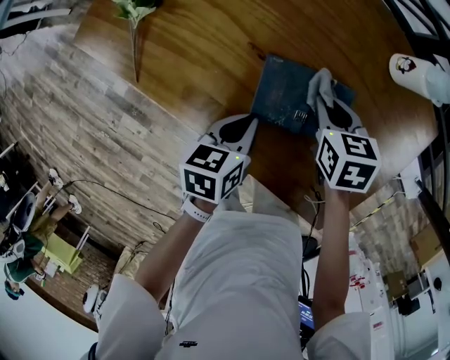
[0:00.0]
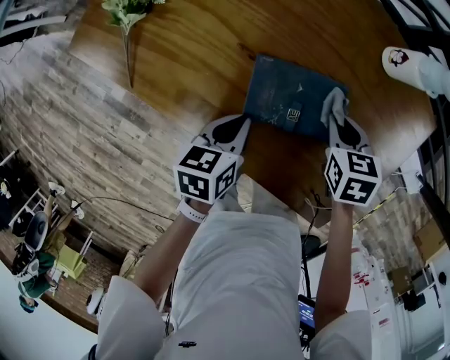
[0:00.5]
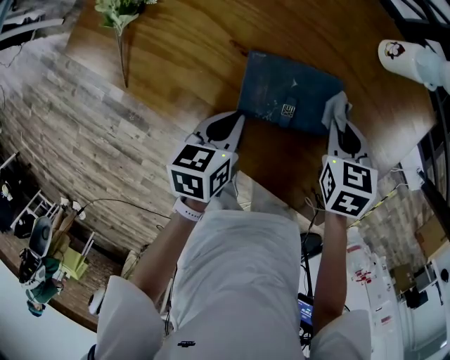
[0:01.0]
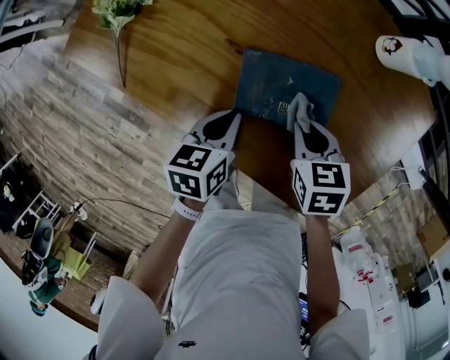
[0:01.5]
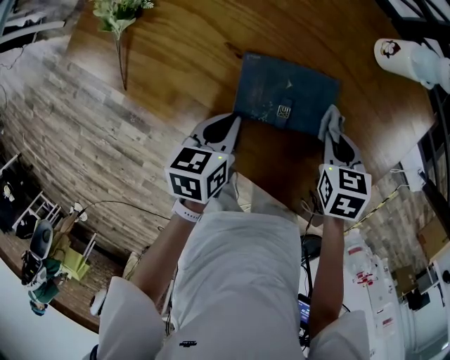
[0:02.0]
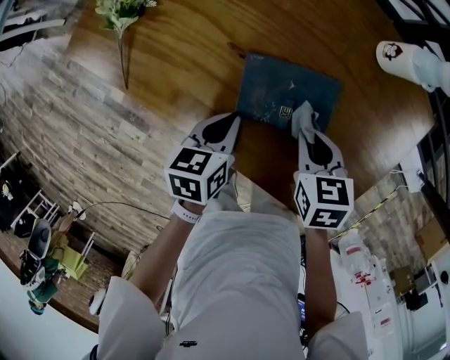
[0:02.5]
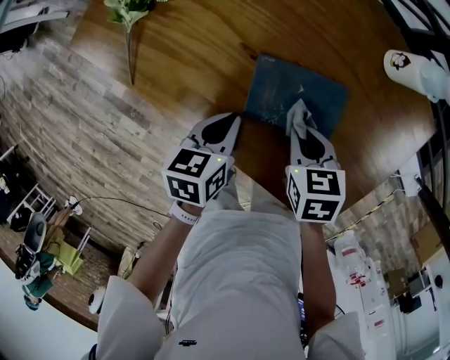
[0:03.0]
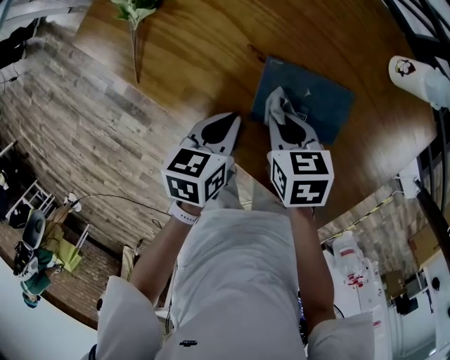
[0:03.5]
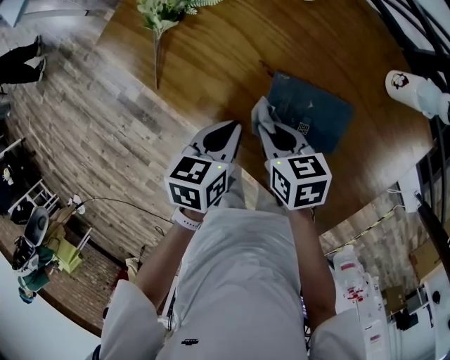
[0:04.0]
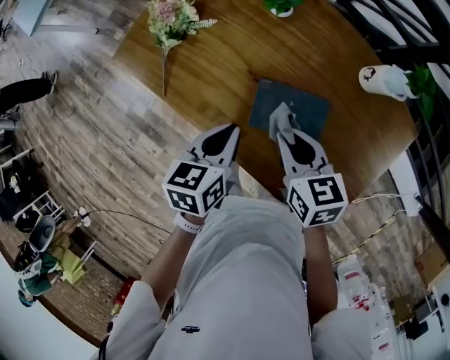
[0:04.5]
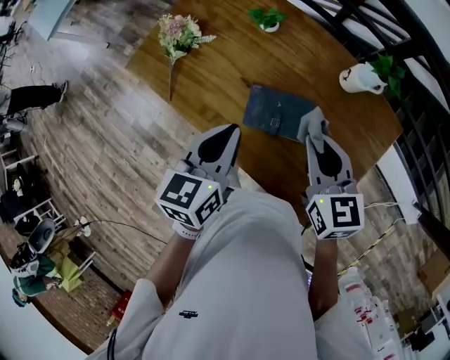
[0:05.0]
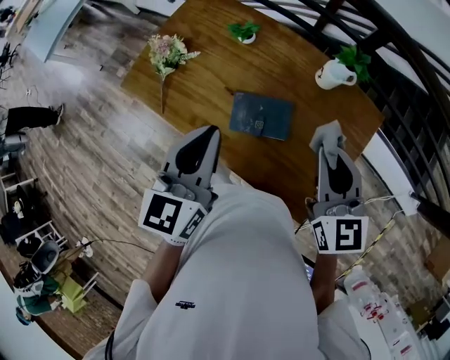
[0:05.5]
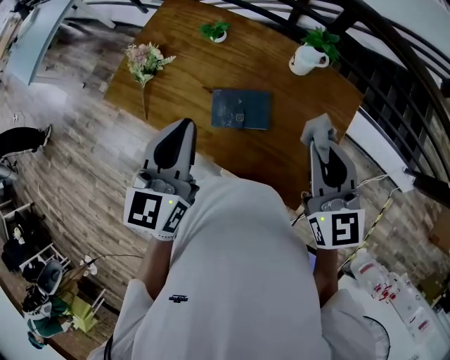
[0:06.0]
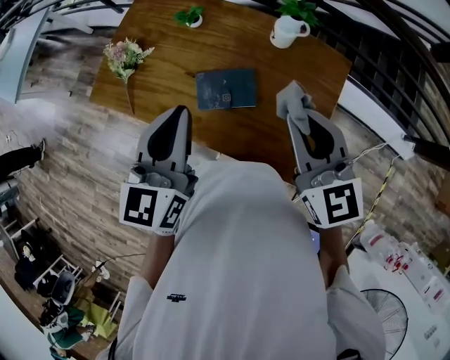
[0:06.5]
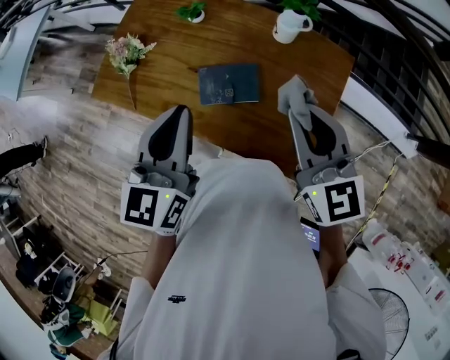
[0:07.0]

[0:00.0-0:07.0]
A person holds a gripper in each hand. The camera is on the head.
0:00.0 to 0:02.0: The right gripper moves left and right over about 10 cm, changing direction 2 times.
0:02.0 to 0:03.5: The right gripper shifts approximately 20 cm to the left.
0:03.5 to 0:05.0: The left gripper shifts roughly 25 cm upward, and swivels some 30 degrees; the right gripper goes roughly 25 cm upward and to the right, and tips its fingers upward by some 30 degrees.
0:05.0 to 0:07.0: The right gripper is displaced upward, backward and to the right by approximately 15 cm. The left gripper goes roughly 10 cm upward, and turns by about 20 degrees.

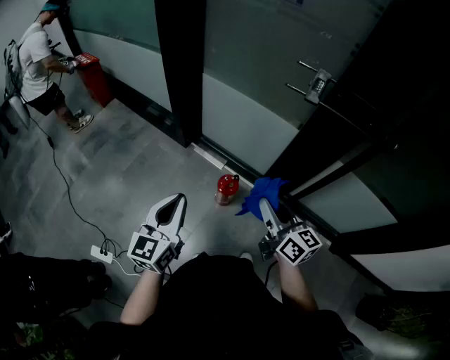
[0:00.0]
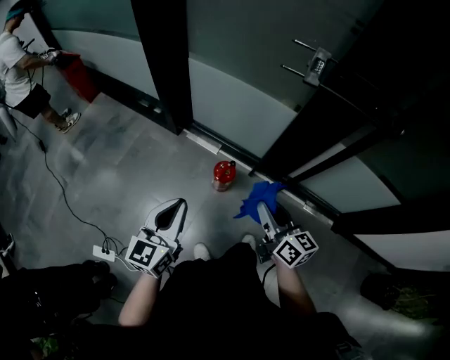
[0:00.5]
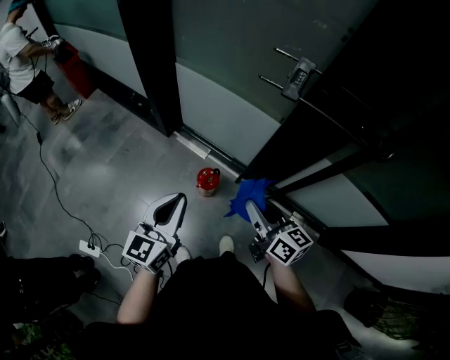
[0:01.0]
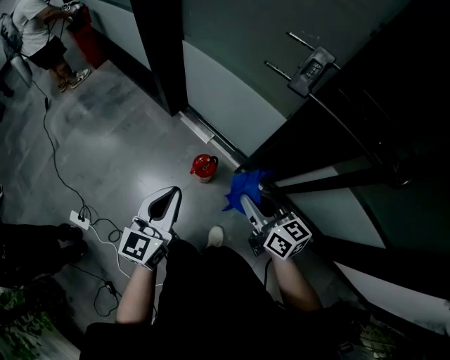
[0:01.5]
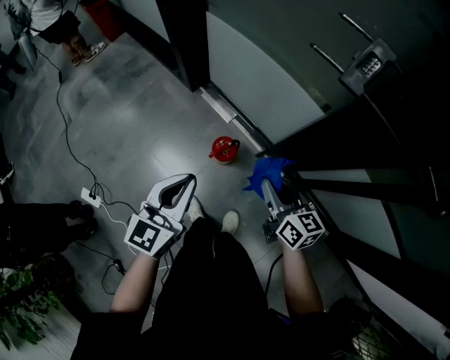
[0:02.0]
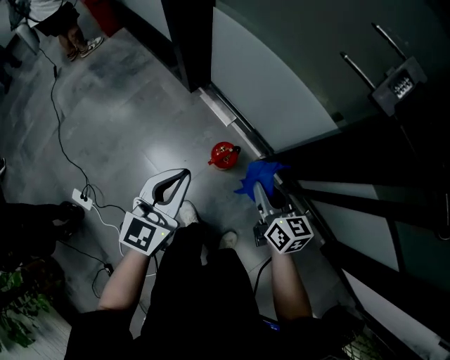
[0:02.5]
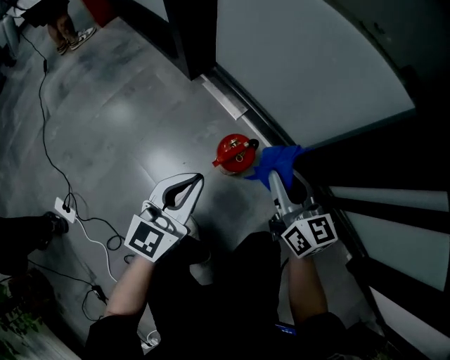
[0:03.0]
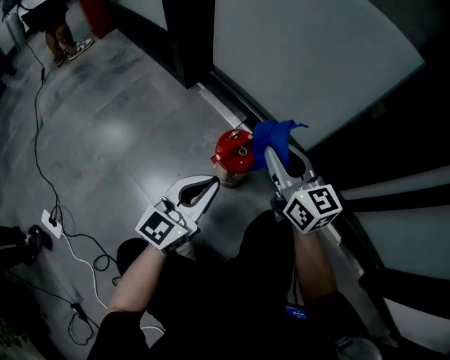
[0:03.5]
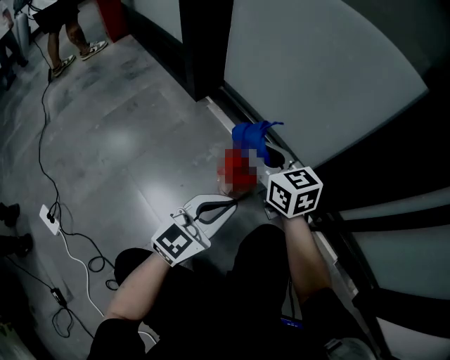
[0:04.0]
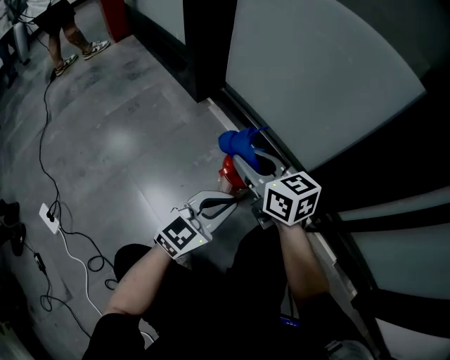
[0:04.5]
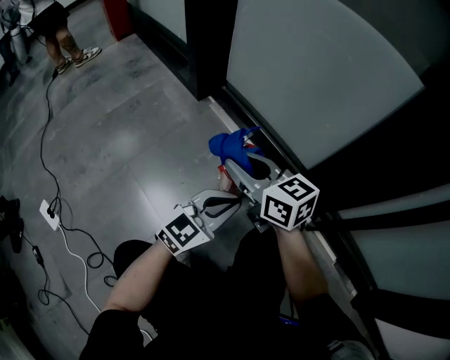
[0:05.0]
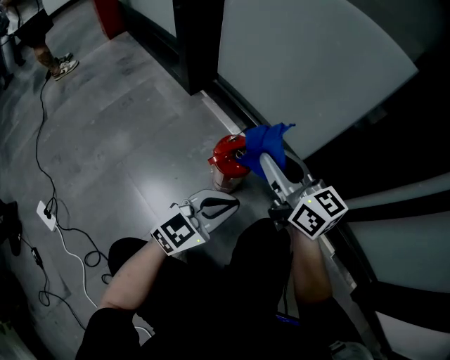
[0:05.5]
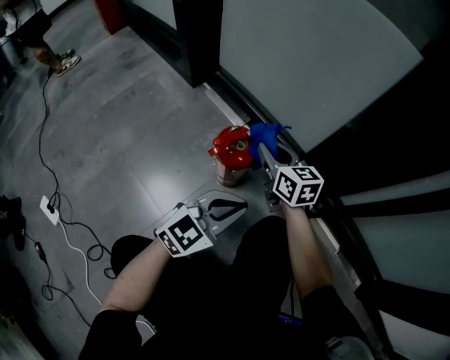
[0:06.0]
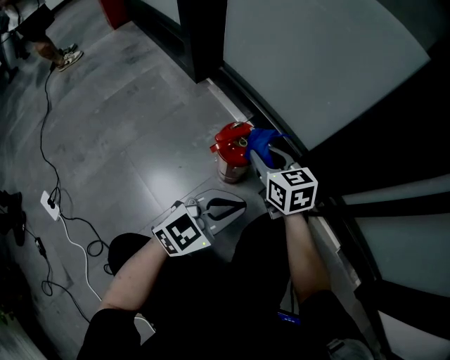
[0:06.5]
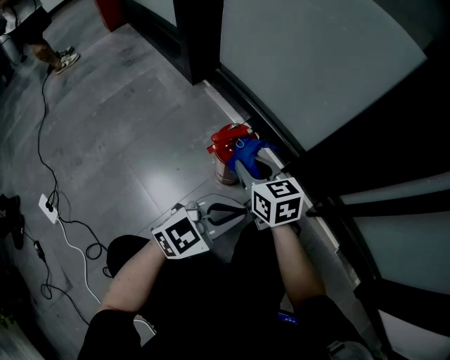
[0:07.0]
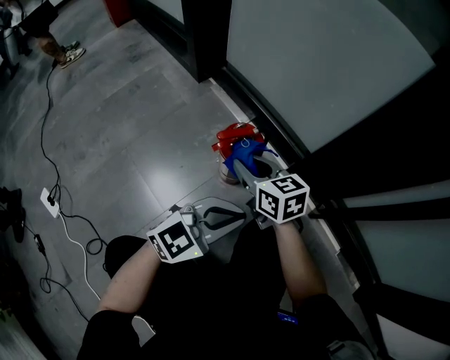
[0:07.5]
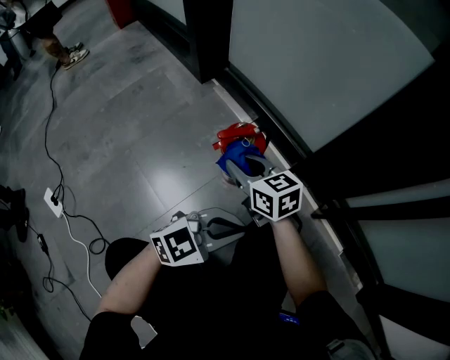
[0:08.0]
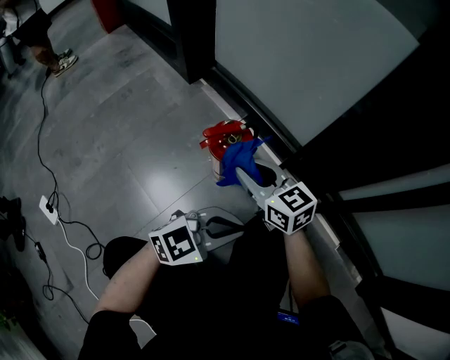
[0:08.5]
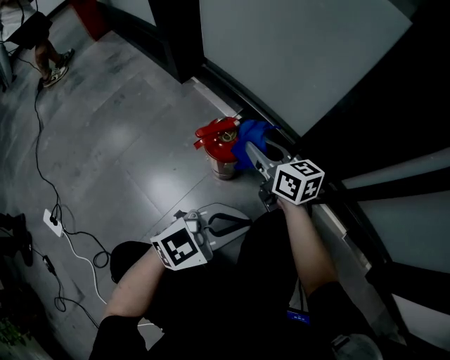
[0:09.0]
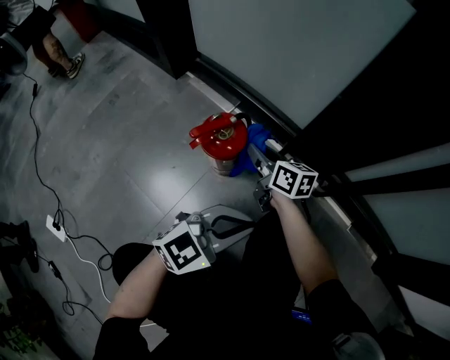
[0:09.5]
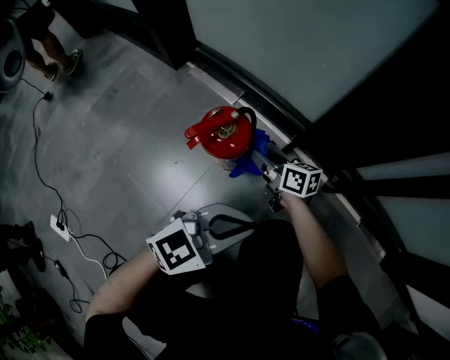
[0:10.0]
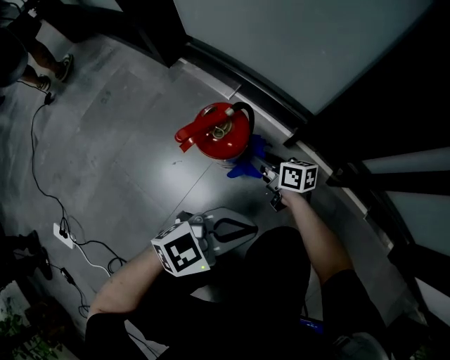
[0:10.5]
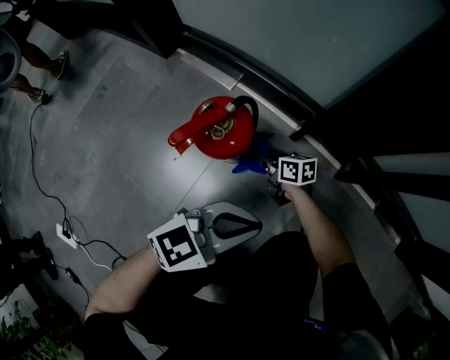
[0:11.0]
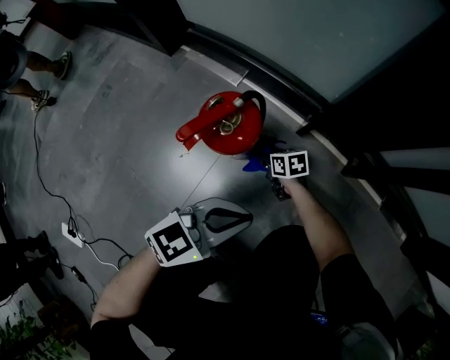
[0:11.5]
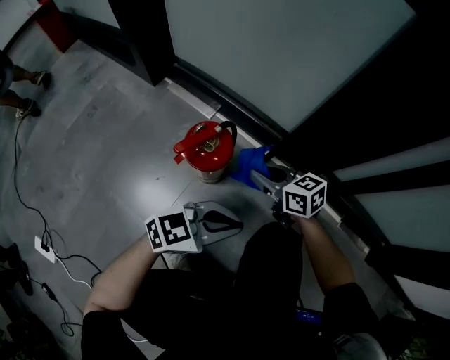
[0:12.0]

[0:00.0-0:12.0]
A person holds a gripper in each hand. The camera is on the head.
0:00.0 to 0:02.0: The right gripper shifts some 20 cm downward, forward and to the right; the left gripper travels to the right, downward and forward by approximately 20 cm.
0:02.0 to 0:04.0: The grippers both shift downward by roughly 40 cm. The right gripper swivels some 20 degrees.
0:04.0 to 0:06.0: The right gripper travels to the right and downward by about 10 cm, while the left gripper goes about 5 cm to the right.
0:06.0 to 0:08.0: The right gripper travels backward and to the left by some 10 cm; the left gripper moves backward, some 5 cm.
0:08.0 to 0:10.0: The right gripper is displaced downward, to the right and forward by approximately 20 cm, and turns by some 30 degrees.
0:10.0 to 0:12.0: The right gripper travels downward and back again, some 20 cm each way, and swivels approximately 20 degrees.

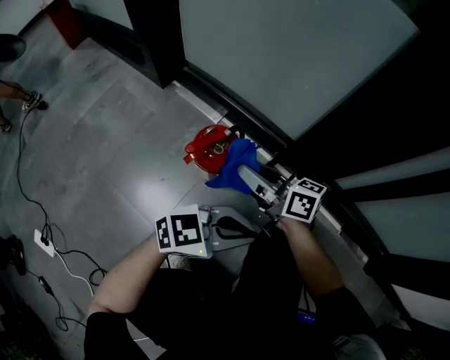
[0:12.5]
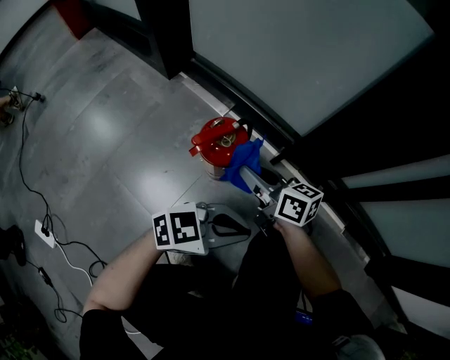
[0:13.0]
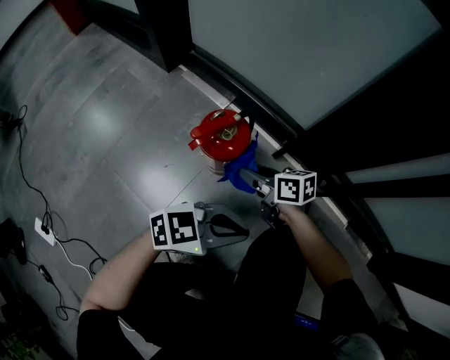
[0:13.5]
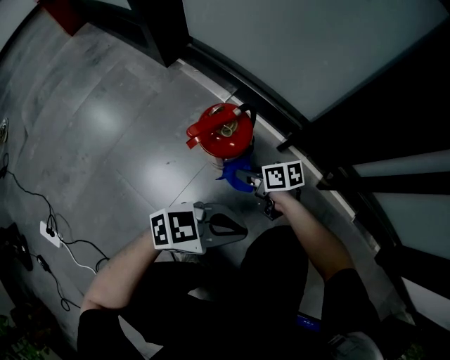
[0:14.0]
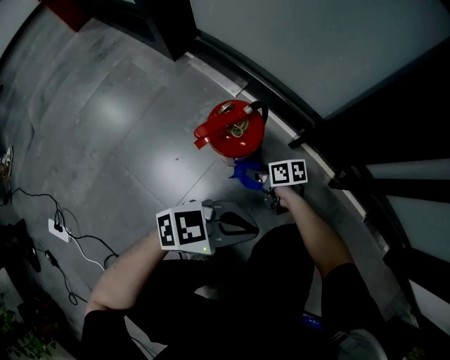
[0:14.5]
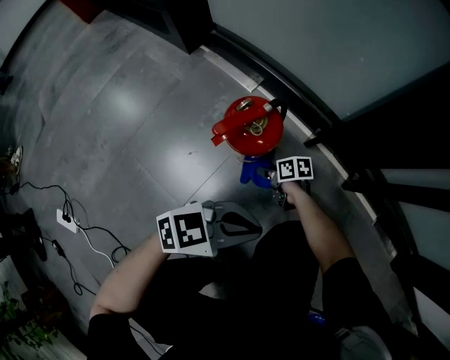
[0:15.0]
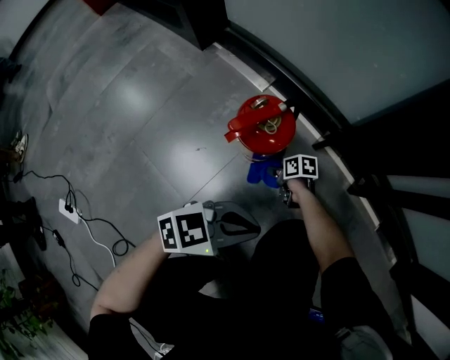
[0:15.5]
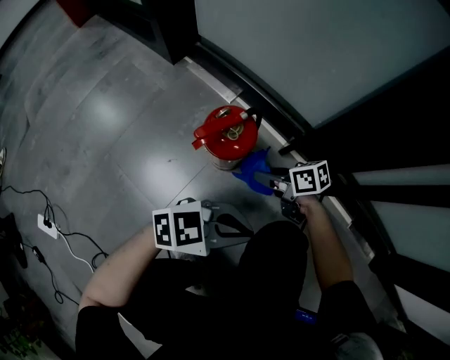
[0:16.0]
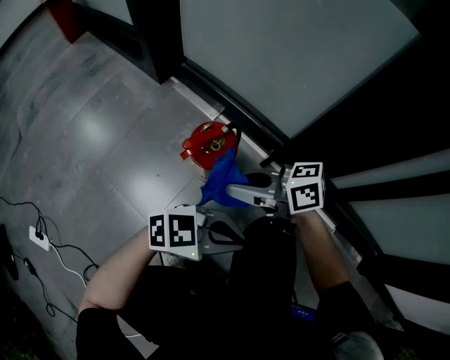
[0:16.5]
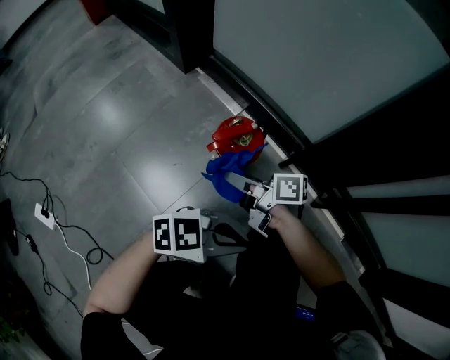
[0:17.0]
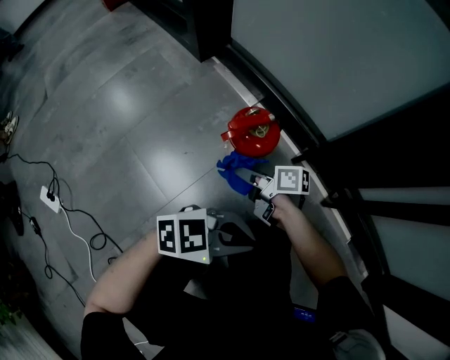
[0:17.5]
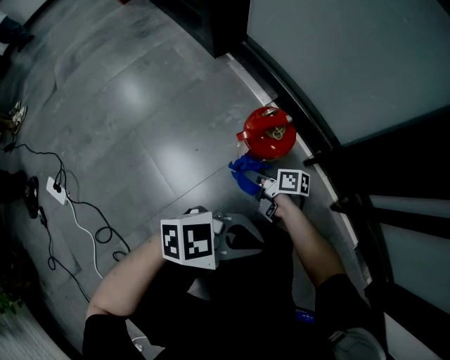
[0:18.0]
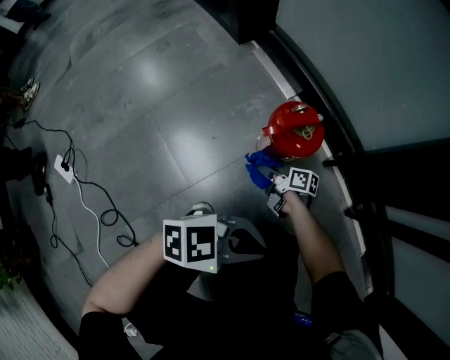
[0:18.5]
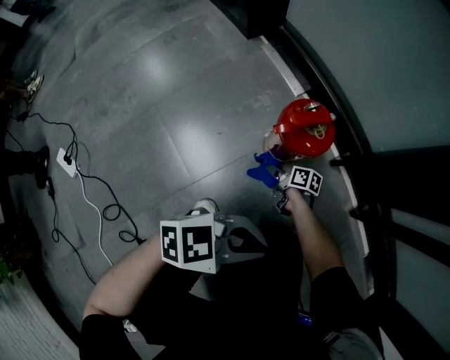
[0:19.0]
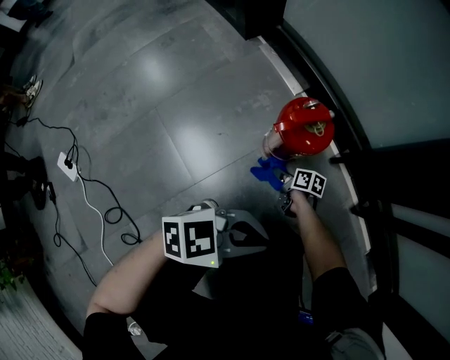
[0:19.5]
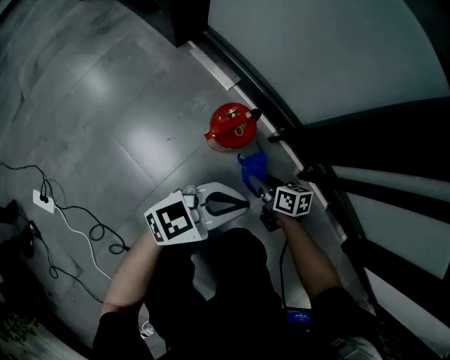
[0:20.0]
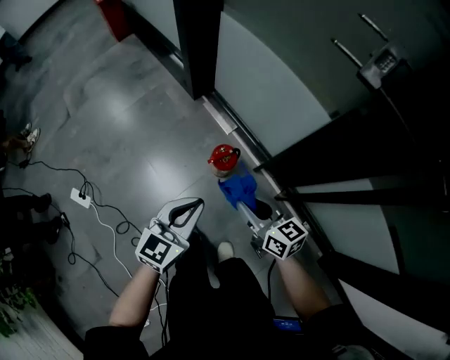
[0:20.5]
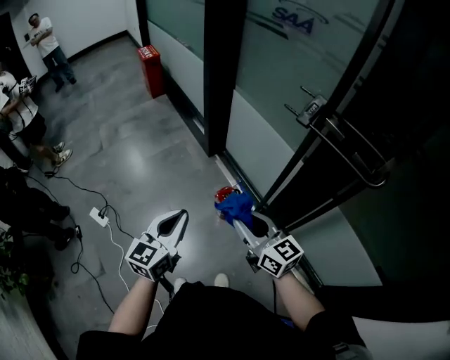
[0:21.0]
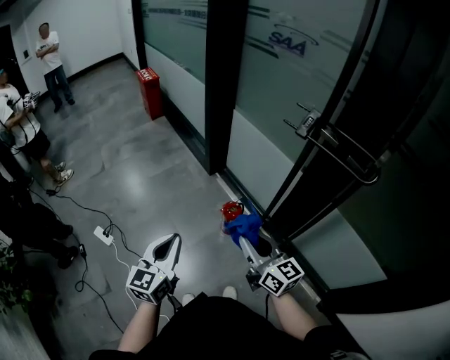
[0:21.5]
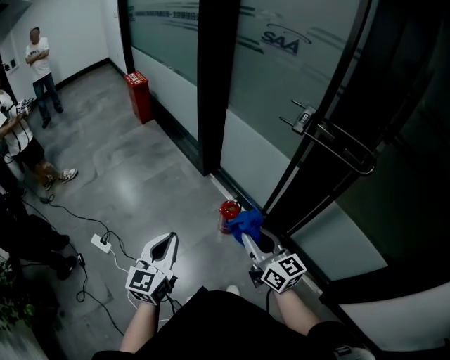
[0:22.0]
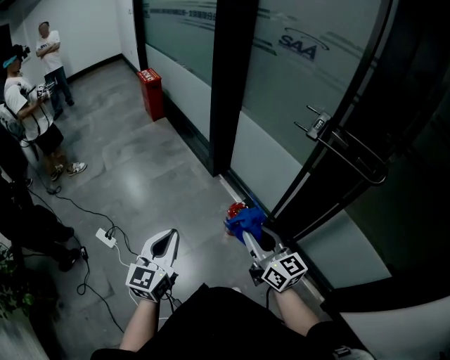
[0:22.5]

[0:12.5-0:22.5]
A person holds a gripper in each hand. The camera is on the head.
0:12.5 to 0:14.5: The right gripper travels downward by about 30 cm, and tilts its fingers about 30 degrees downward. Meanwhile the left gripper moves downward, approximately 5 cm.
0:14.5 to 0:16.5: The right gripper shifts about 30 cm upward, and changes its angle by roughly 40 degrees. The left gripper travels upward by approximately 5 cm.
0:16.5 to 0:18.5: The right gripper moves downward, about 30 cm, and swivels some 40 degrees. Meanwhile the left gripper ends up some 5 cm from where it was.
0:18.5 to 0:20.5: The right gripper is displaced upward by about 70 cm, and rolls counterclockwise, seen from behind, by about 40 degrees; the left gripper is displaced upward by about 40 cm, and swivels roughly 60 degrees.
0:20.5 to 0:22.5: The right gripper is displaced upward and backward by roughly 35 cm, and rotates roughly 30 degrees. Meanwhile the left gripper travels upward, to the left and backward by about 35 cm, and swivels roughly 30 degrees.
